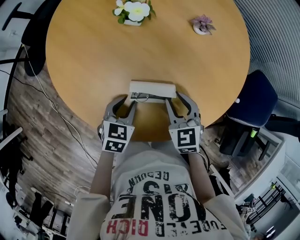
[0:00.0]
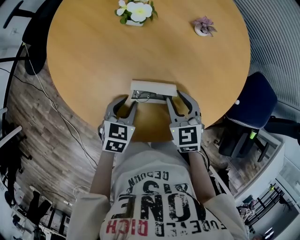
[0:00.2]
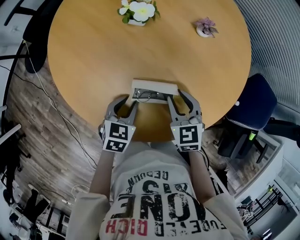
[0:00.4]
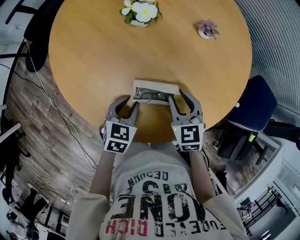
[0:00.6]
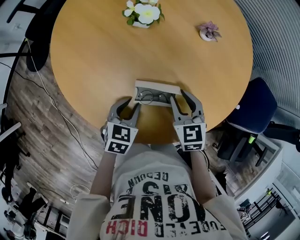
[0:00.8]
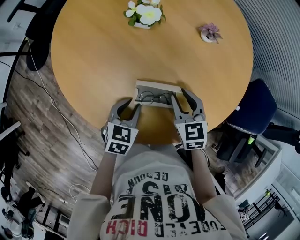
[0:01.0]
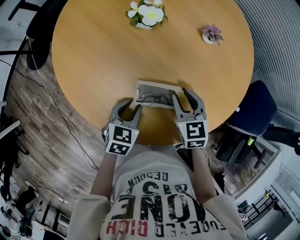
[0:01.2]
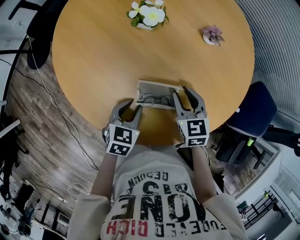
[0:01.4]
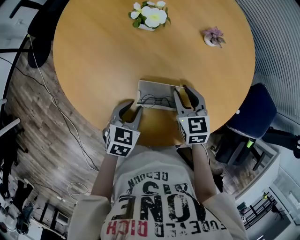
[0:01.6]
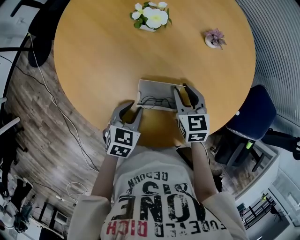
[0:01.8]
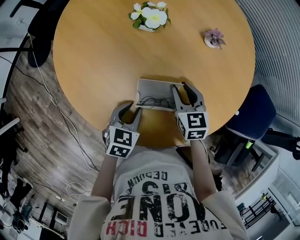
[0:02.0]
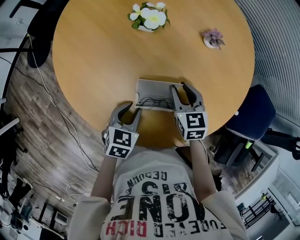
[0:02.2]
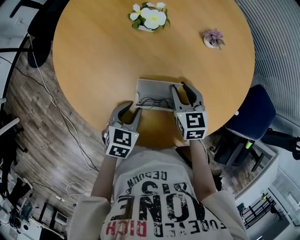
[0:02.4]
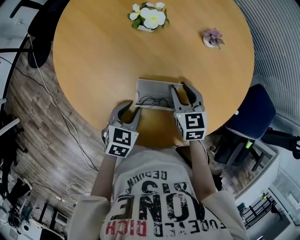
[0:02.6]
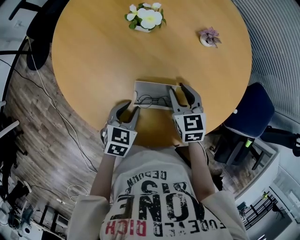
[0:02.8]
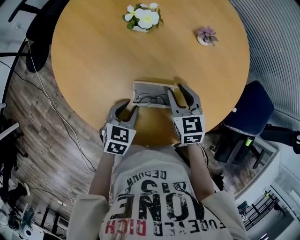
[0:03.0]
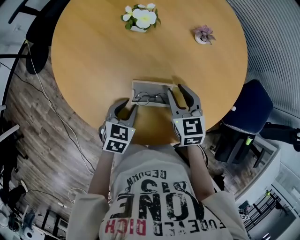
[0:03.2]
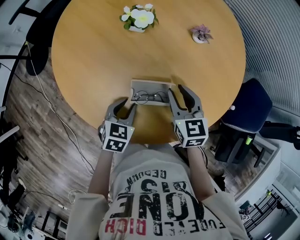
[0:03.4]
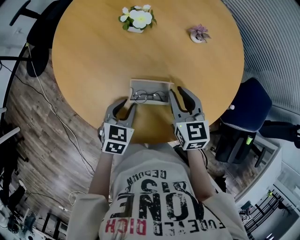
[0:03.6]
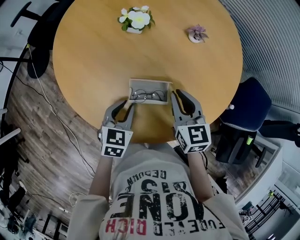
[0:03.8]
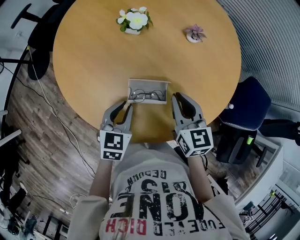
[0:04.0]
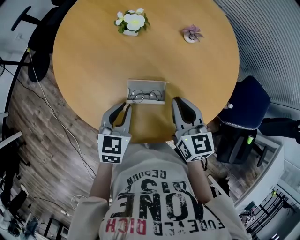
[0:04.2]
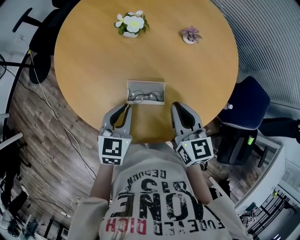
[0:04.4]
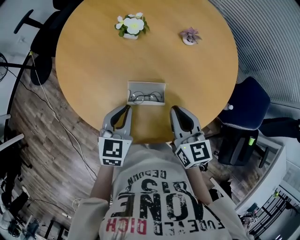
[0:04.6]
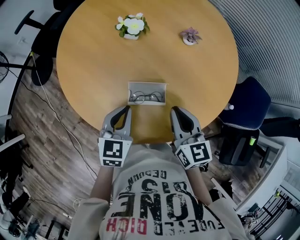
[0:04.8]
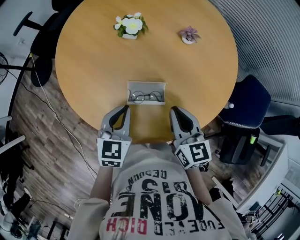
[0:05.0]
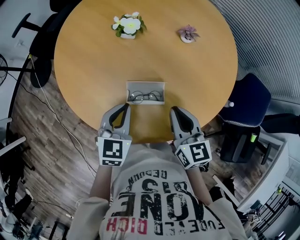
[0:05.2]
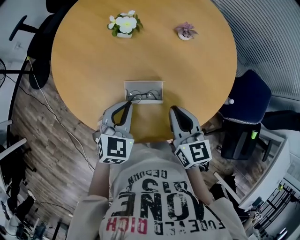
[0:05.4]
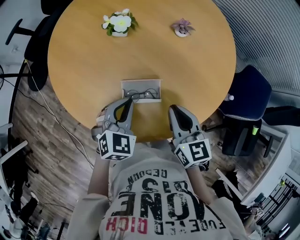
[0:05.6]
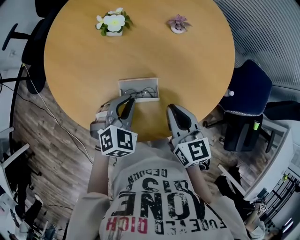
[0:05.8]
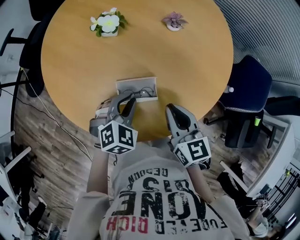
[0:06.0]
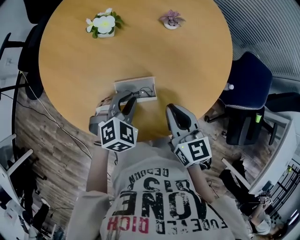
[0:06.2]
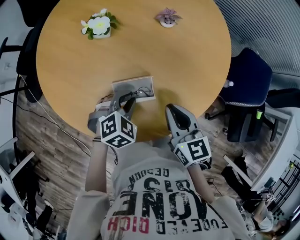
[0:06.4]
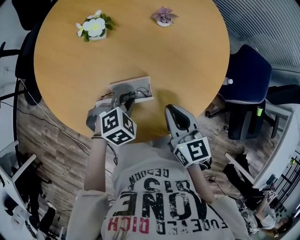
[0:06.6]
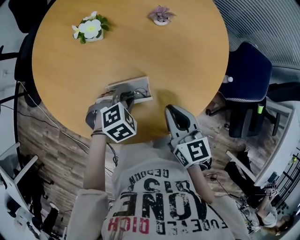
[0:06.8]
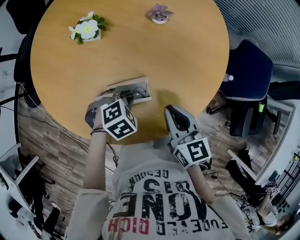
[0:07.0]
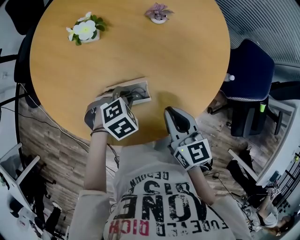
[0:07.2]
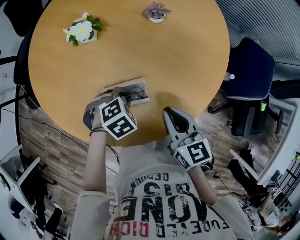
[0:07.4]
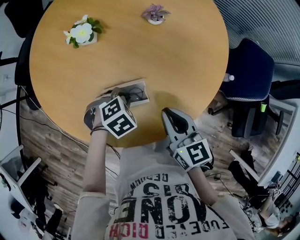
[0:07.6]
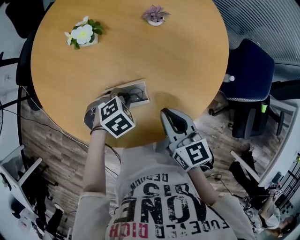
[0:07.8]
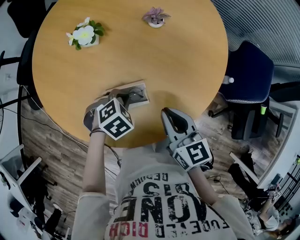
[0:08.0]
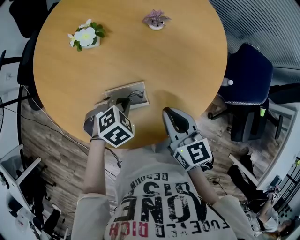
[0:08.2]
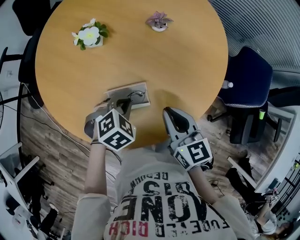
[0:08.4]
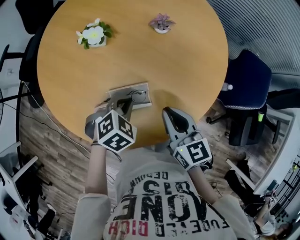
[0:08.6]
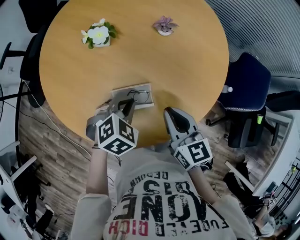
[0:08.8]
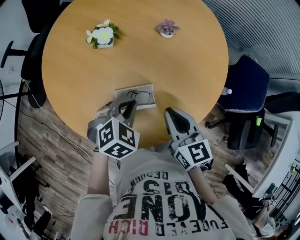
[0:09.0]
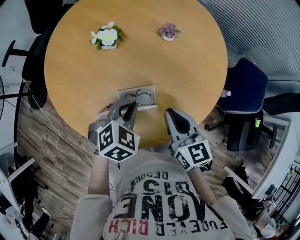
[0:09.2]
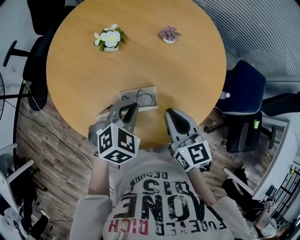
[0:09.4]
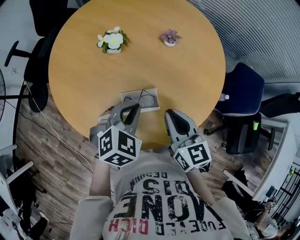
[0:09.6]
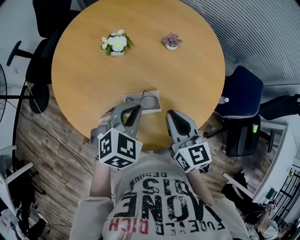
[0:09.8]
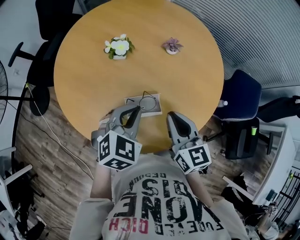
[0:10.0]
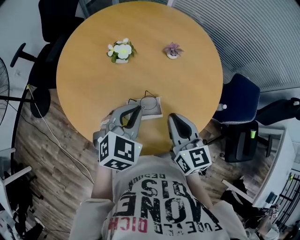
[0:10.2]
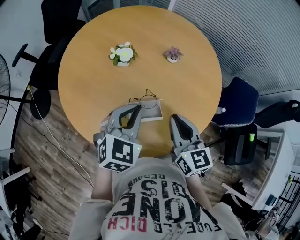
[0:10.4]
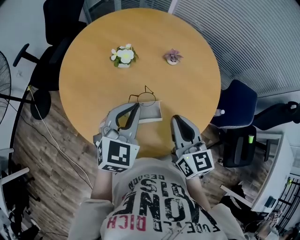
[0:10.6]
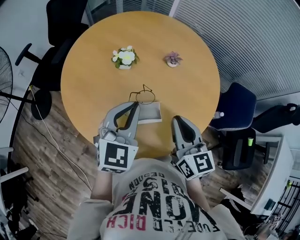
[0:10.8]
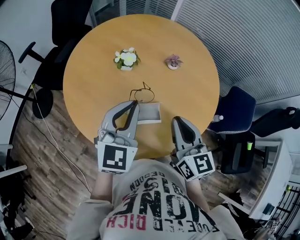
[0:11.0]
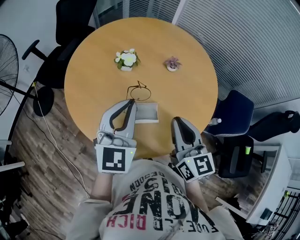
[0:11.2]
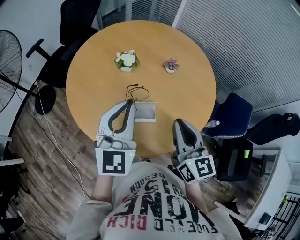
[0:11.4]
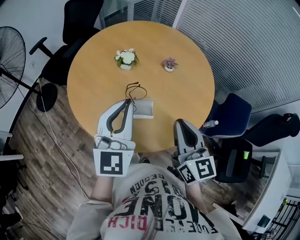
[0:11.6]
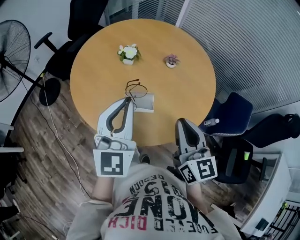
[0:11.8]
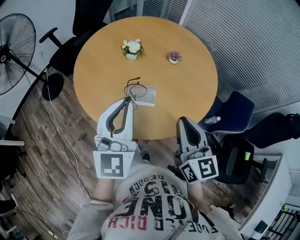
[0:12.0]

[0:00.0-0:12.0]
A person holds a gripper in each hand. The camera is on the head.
0:00.0 to 0:01.6: The right gripper heads forward, covering approximately 5 cm.
0:01.6 to 0:03.0: The grippers make only small movements.
0:03.0 to 0:04.4: The left gripper goes about 10 cm upward, and closes its fingers. The right gripper shifts some 10 cm upward and backward, changes its angle by roughly 20 degrees, and closes.
0:04.4 to 0:06.0: The left gripper is displaced to the right by approximately 5 cm, and turns by about 40 degrees.
0:06.0 to 0:07.6: The left gripper moves downward, about 10 cm, and swivels roughly 30 degrees.
0:07.6 to 0:09.0: The left gripper is displaced upward by approximately 10 cm, and changes its angle by roughly 20 degrees.
0:09.0 to 0:10.4: The left gripper shifts approximately 10 cm upward, and turns by about 30 degrees. The right gripper moves upward, about 5 cm.
0:10.4 to 0:12.0: The left gripper travels upward and backward by roughly 20 cm, and tips its fingers upward by roughly 30 degrees. Meanwhile the right gripper heads backward, upward and to the right, covering roughly 15 cm.

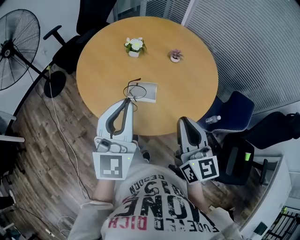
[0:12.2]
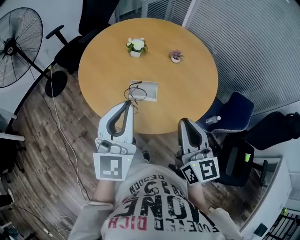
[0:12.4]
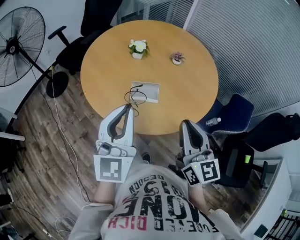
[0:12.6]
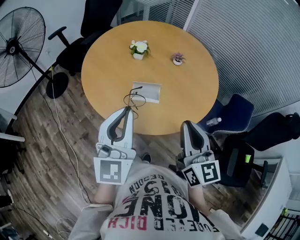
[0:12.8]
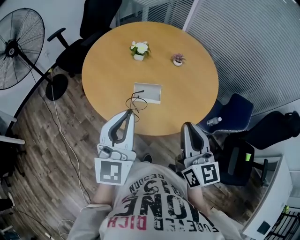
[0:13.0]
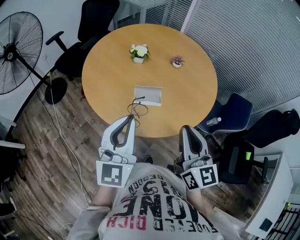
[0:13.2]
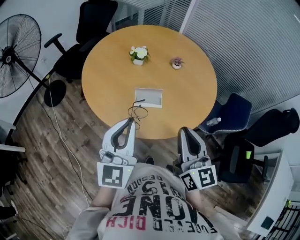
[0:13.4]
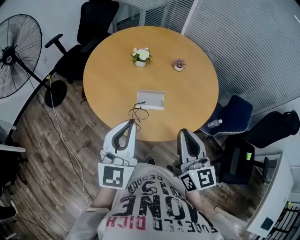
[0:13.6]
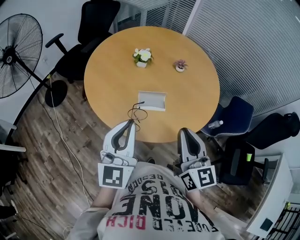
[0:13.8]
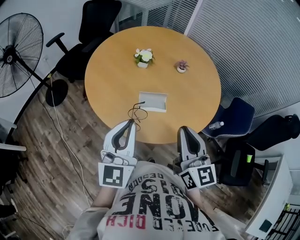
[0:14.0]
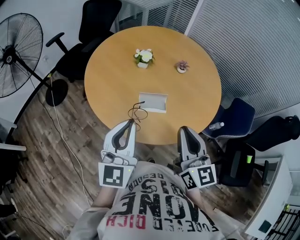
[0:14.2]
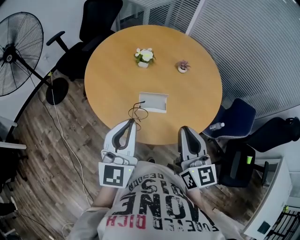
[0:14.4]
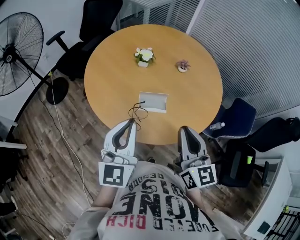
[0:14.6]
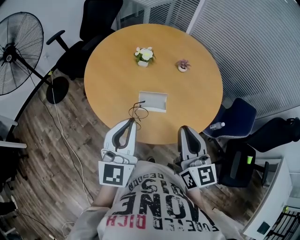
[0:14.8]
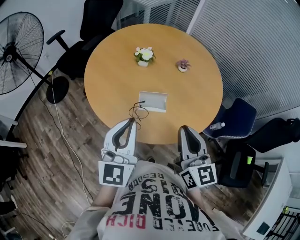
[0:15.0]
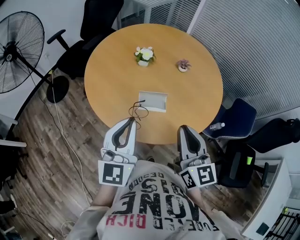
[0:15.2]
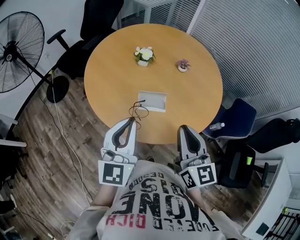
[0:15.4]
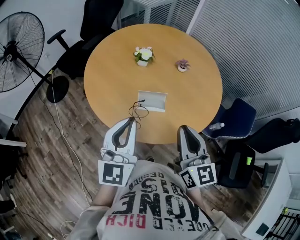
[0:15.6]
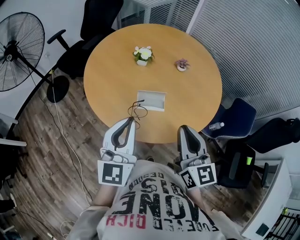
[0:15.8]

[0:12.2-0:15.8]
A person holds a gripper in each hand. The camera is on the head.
0:12.2 to 0:14.0: The grippers both shift to the left by approximately 5 cm.
0:14.0 to 0:15.8: The grippers move only a little.

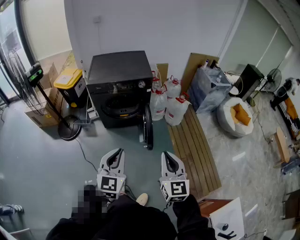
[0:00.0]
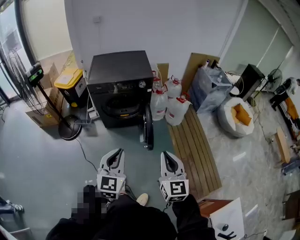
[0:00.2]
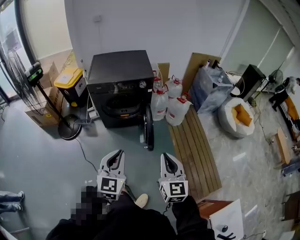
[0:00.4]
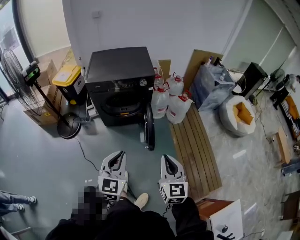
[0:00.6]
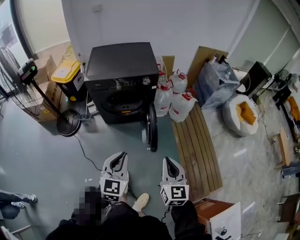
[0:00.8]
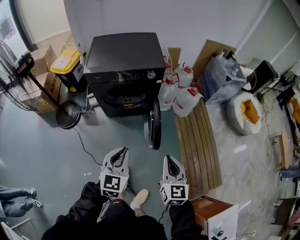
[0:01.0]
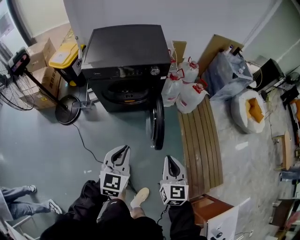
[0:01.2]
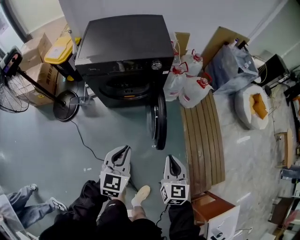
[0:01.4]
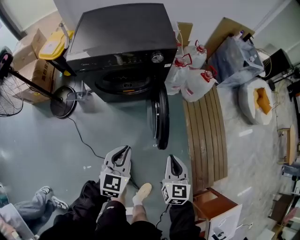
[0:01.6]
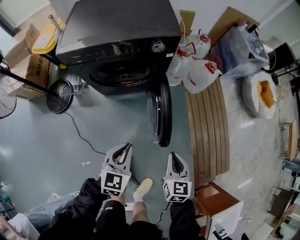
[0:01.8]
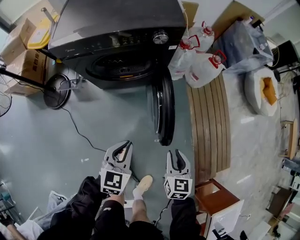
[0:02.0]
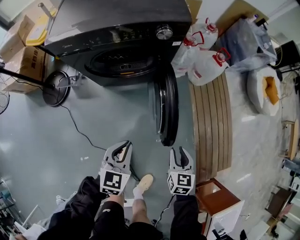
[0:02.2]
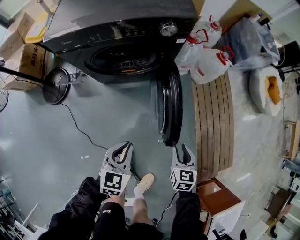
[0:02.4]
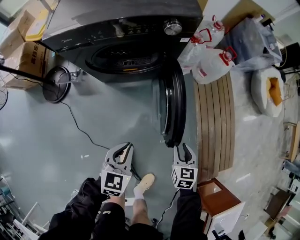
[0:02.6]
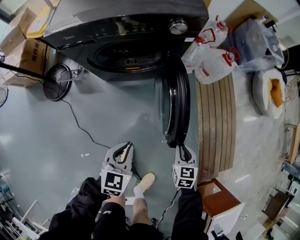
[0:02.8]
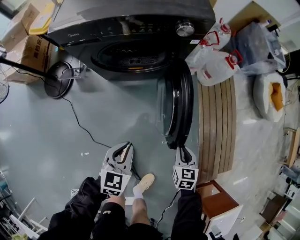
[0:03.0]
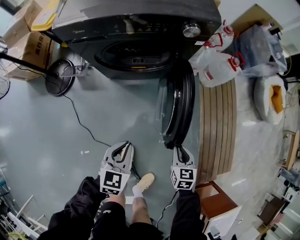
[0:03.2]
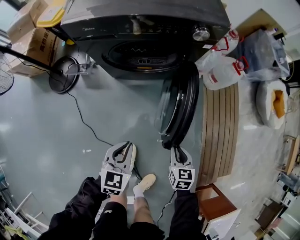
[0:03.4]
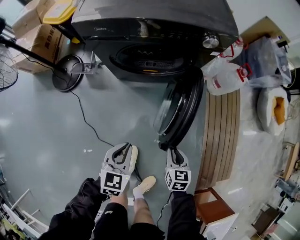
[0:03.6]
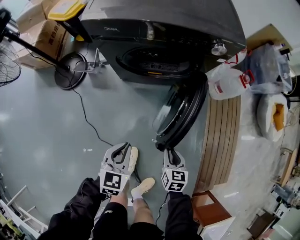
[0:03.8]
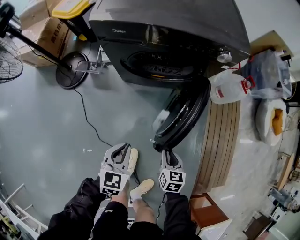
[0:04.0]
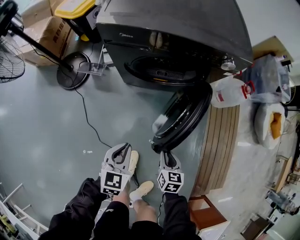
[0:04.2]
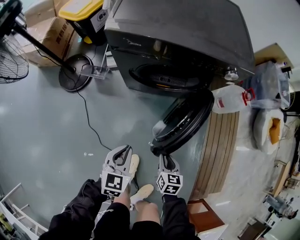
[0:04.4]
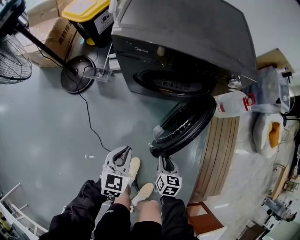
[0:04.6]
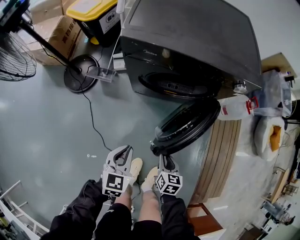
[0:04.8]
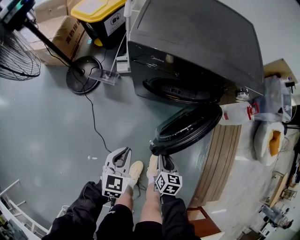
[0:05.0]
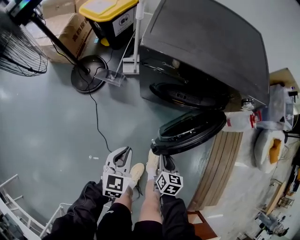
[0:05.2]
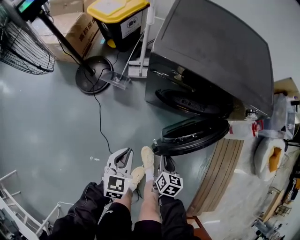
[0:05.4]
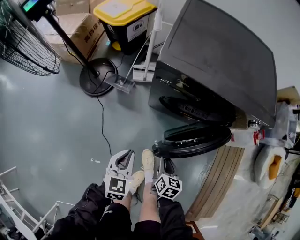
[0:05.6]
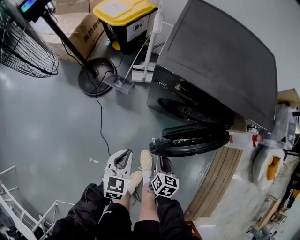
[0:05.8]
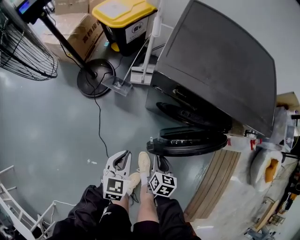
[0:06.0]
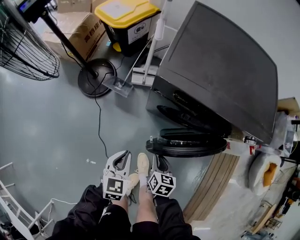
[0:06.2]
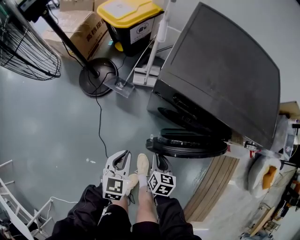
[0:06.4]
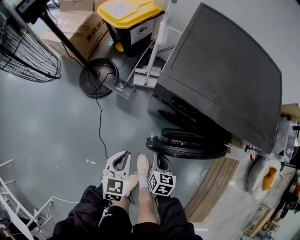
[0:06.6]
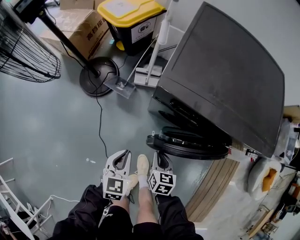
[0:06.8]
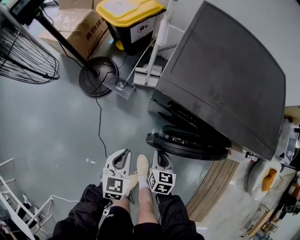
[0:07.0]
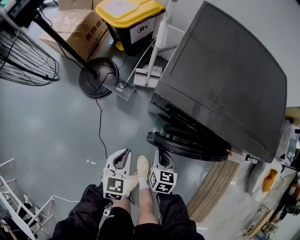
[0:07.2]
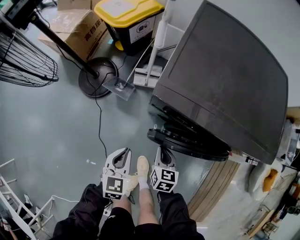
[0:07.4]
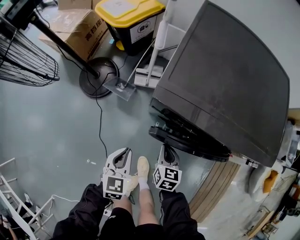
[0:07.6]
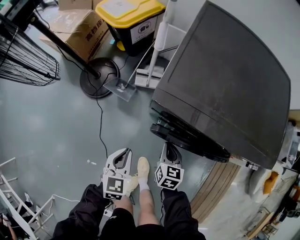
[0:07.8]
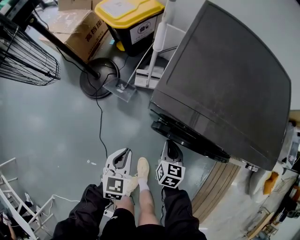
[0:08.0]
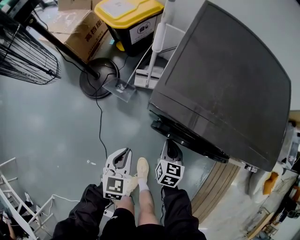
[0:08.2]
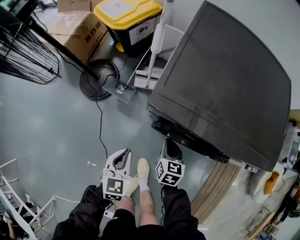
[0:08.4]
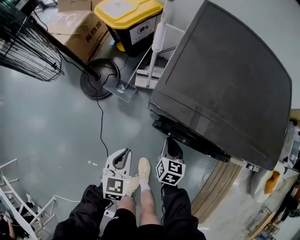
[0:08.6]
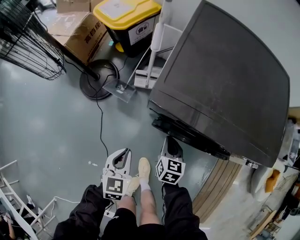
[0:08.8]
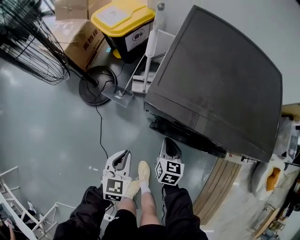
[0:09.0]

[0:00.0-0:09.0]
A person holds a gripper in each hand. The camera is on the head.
0:00.0 to 0:01.6: The right gripper shifts approximately 40 cm downward and forward, and turns by roughly 20 degrees; the left gripper travels forward and downward by roughly 35 cm, and turns by some 20 degrees.
0:01.6 to 0:03.0: Both grippers move downward, roughly 20 cm. The right gripper rotates about 20 degrees.
0:03.0 to 0:04.4: Both grippers move to the left, some 20 cm.
0:04.4 to 0:06.0: The right gripper heads forward and to the left, covering roughly 25 cm; the left gripper goes roughly 20 cm to the left and forward.
0:06.0 to 0:07.6: The left gripper moves forward, about 10 cm. The right gripper moves forward, roughly 15 cm.
0:07.6 to 0:09.0: The grippers stay close to where they were, moving slightly.
